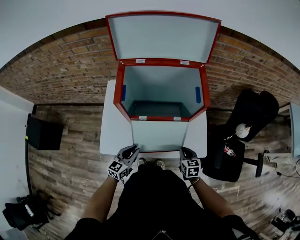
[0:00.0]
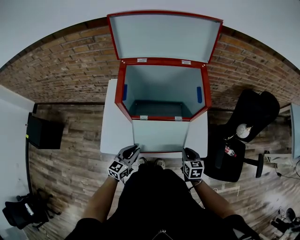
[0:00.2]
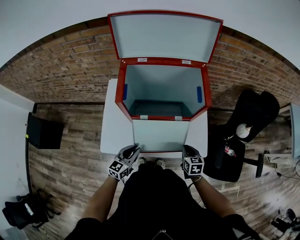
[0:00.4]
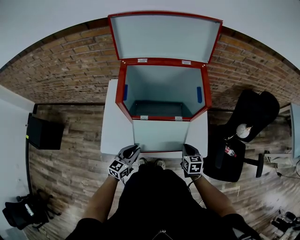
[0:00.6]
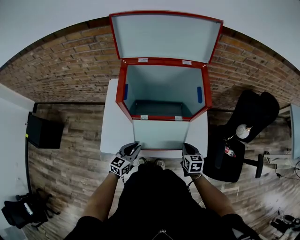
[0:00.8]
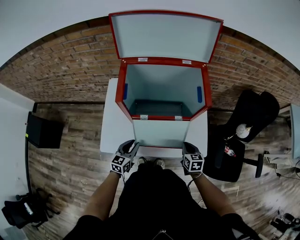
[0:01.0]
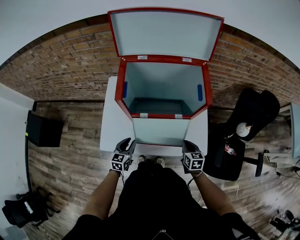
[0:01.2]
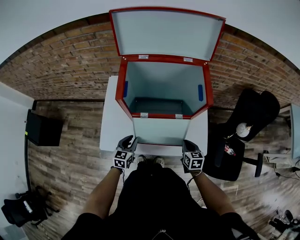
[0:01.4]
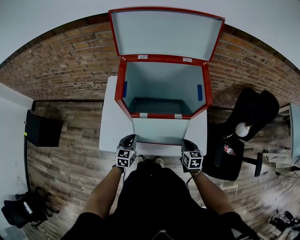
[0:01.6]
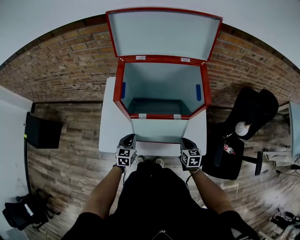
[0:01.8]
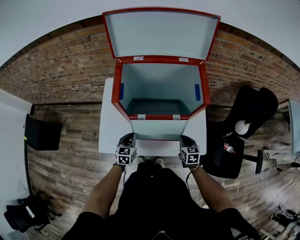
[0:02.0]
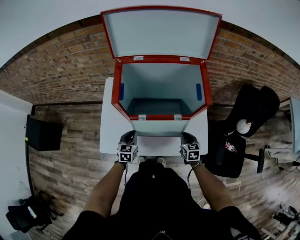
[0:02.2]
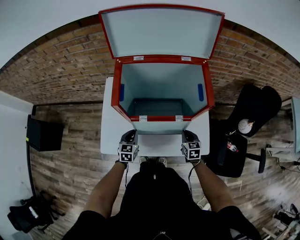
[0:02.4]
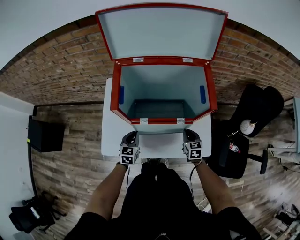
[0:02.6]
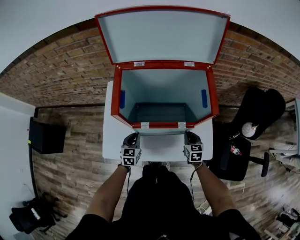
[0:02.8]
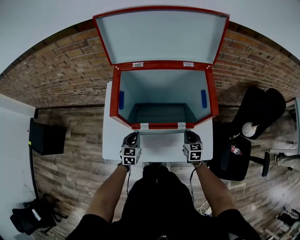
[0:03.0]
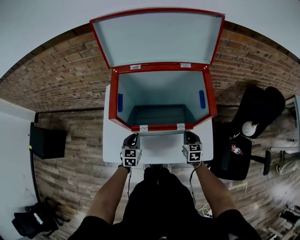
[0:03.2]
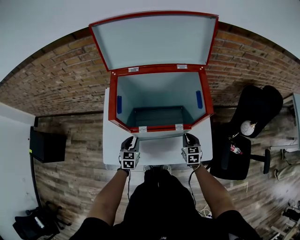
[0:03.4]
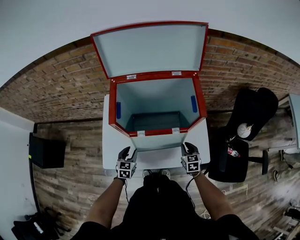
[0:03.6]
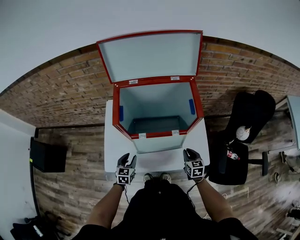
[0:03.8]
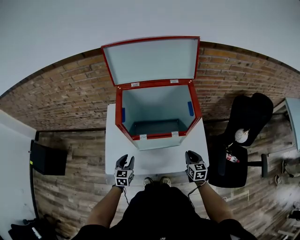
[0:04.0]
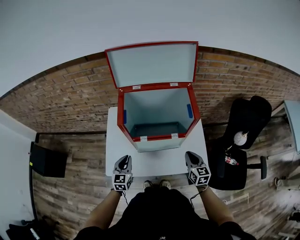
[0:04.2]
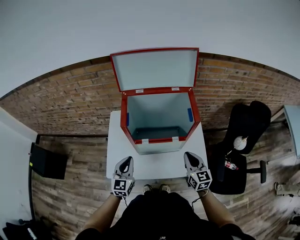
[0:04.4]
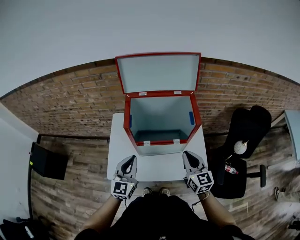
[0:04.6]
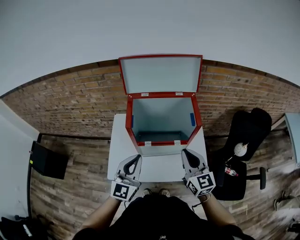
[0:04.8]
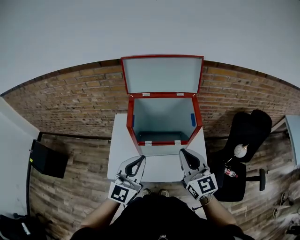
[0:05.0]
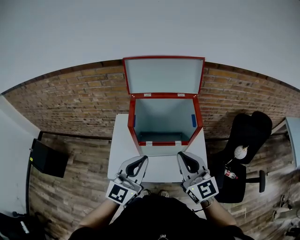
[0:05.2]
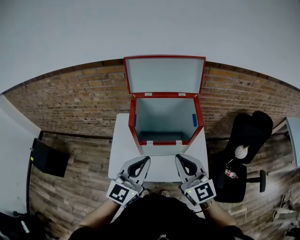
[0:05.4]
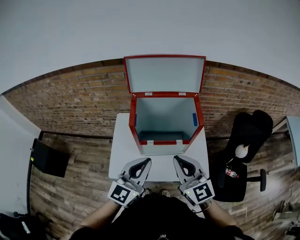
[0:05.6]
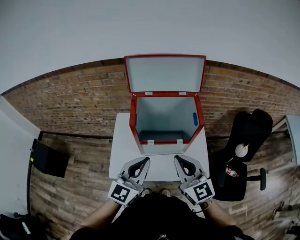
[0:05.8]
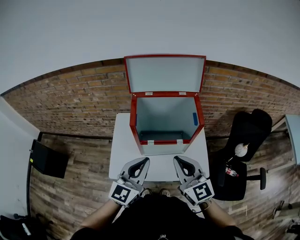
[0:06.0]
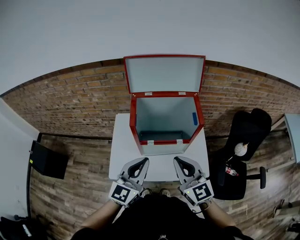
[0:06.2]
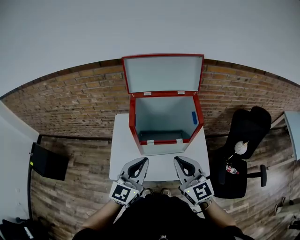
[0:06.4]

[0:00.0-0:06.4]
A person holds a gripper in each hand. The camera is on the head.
0:00.0 to 0:01.6: The left gripper goes some 5 cm forward, and turns by some 20 degrees.
0:01.6 to 0:03.2: Both grippers travel together forward, about 10 cm.
0:03.2 to 0:04.8: The grippers both shift upward by about 35 cm. The right gripper tilts its fingers approximately 30 degrees upward, while the left gripper points its fingers roughly 40 degrees further upward, and opens, then closes once more.
0:04.8 to 0:06.4: The right gripper shifts roughly 5 cm to the left.

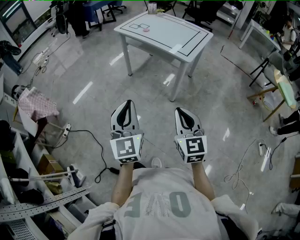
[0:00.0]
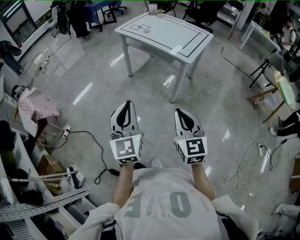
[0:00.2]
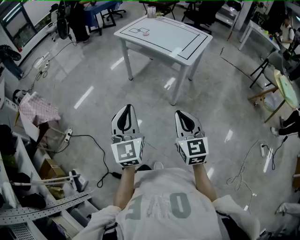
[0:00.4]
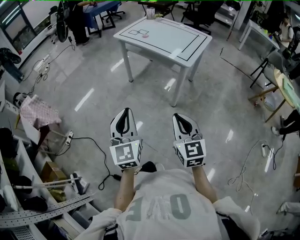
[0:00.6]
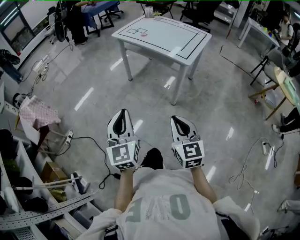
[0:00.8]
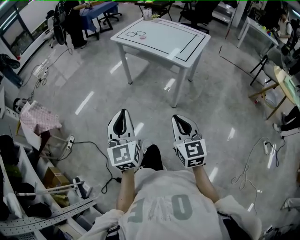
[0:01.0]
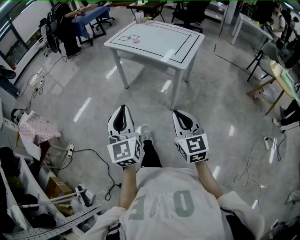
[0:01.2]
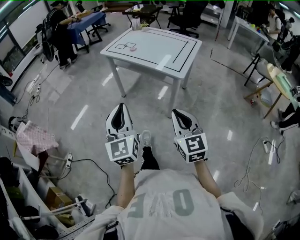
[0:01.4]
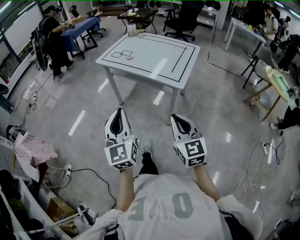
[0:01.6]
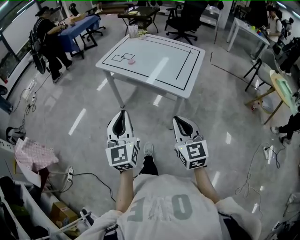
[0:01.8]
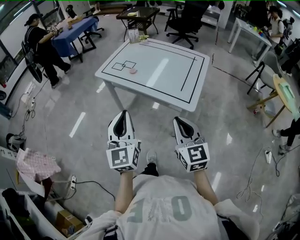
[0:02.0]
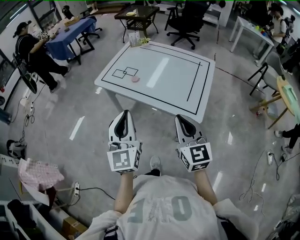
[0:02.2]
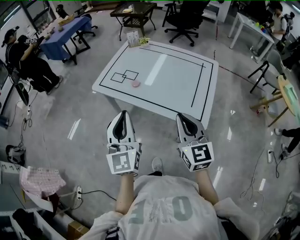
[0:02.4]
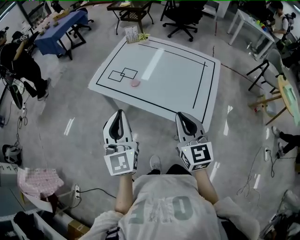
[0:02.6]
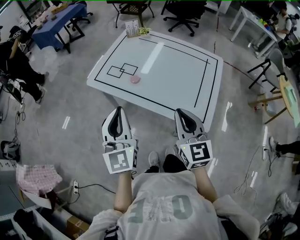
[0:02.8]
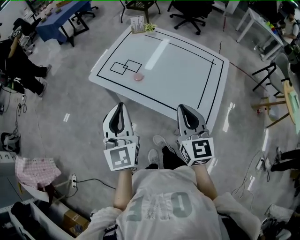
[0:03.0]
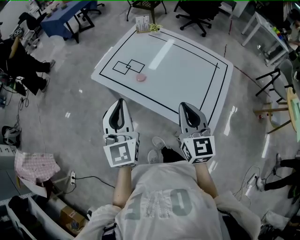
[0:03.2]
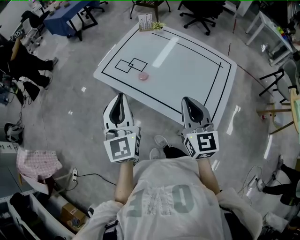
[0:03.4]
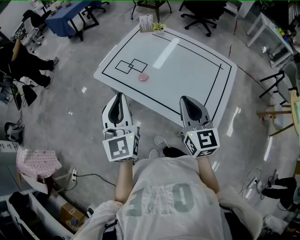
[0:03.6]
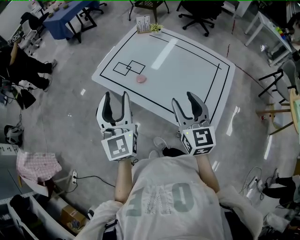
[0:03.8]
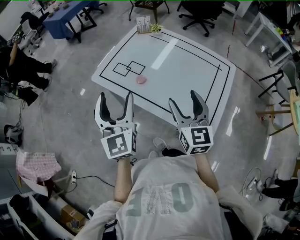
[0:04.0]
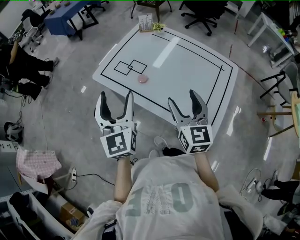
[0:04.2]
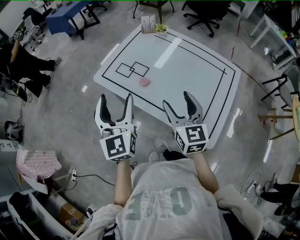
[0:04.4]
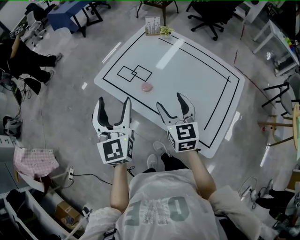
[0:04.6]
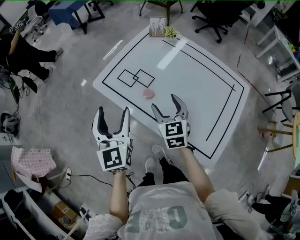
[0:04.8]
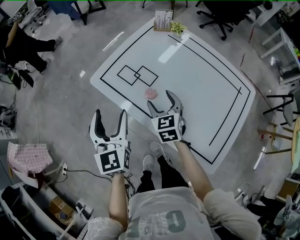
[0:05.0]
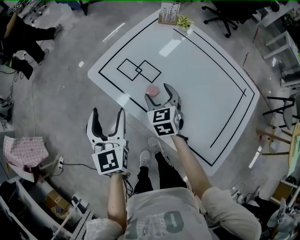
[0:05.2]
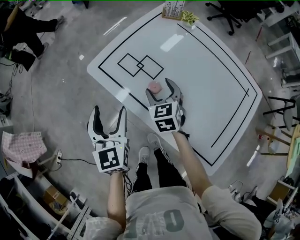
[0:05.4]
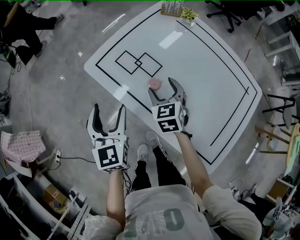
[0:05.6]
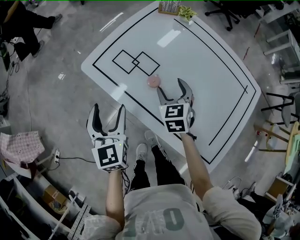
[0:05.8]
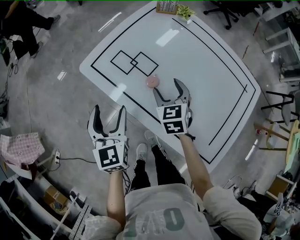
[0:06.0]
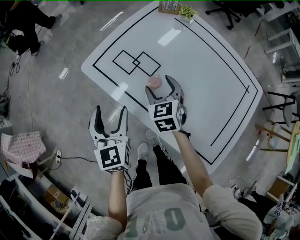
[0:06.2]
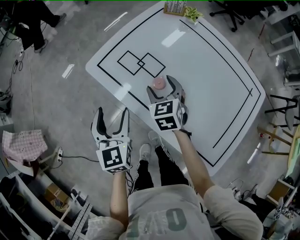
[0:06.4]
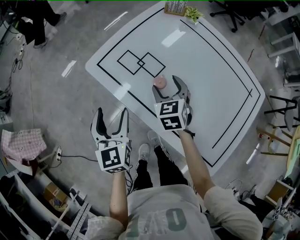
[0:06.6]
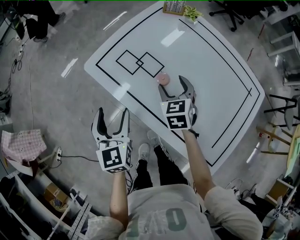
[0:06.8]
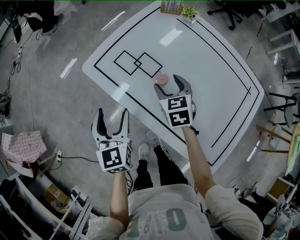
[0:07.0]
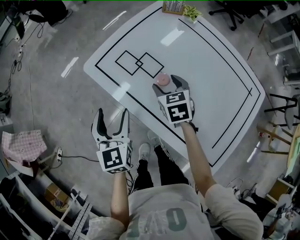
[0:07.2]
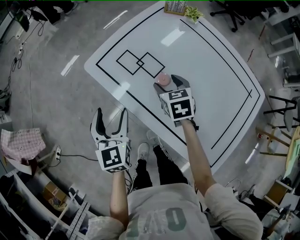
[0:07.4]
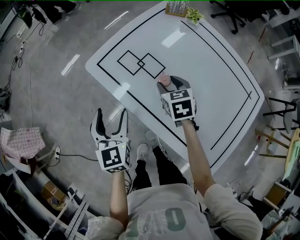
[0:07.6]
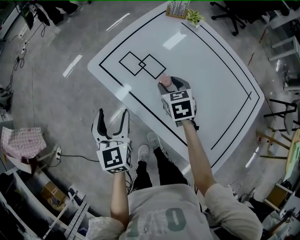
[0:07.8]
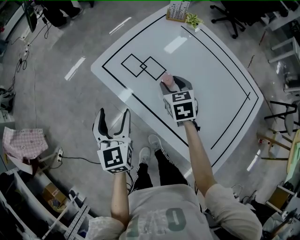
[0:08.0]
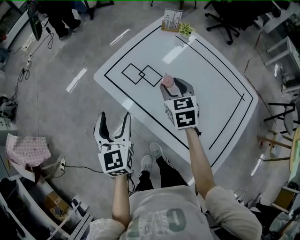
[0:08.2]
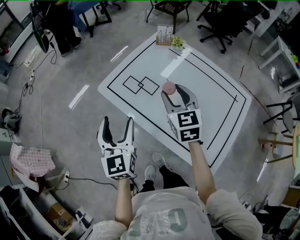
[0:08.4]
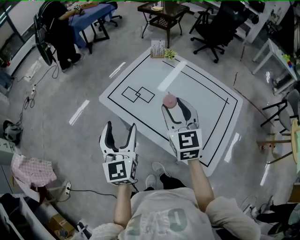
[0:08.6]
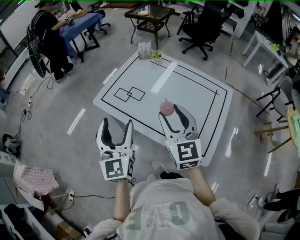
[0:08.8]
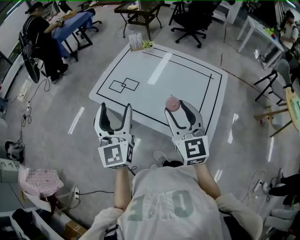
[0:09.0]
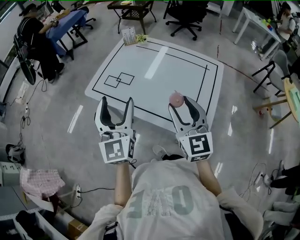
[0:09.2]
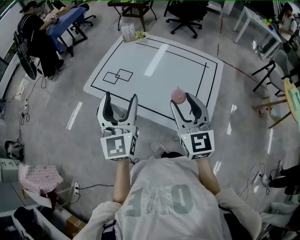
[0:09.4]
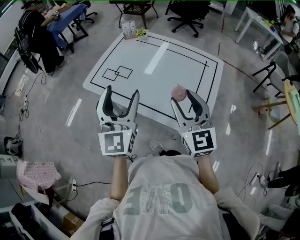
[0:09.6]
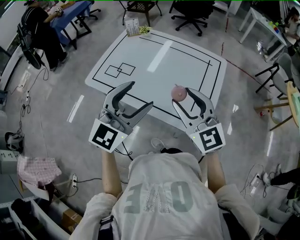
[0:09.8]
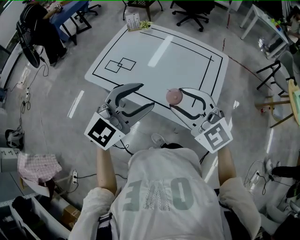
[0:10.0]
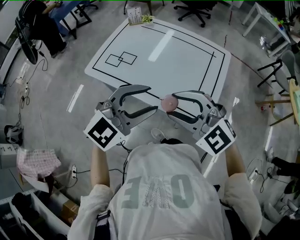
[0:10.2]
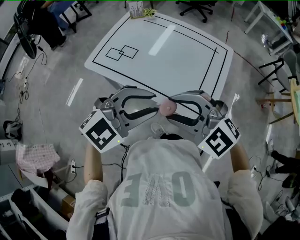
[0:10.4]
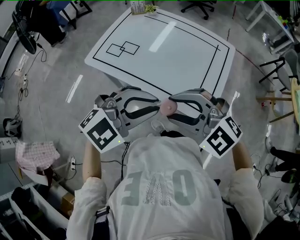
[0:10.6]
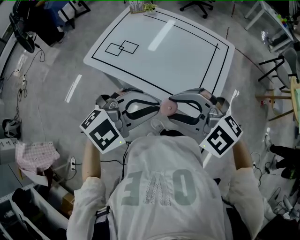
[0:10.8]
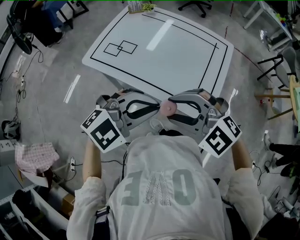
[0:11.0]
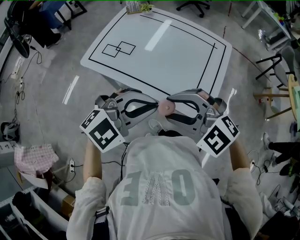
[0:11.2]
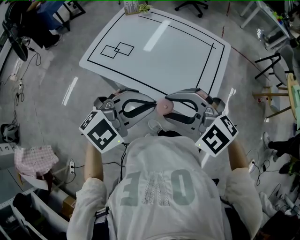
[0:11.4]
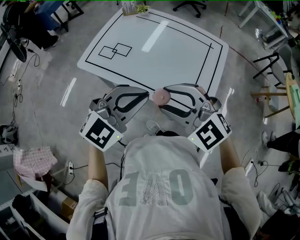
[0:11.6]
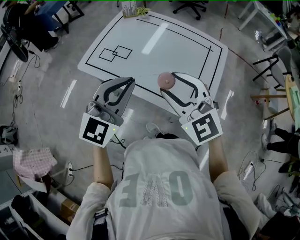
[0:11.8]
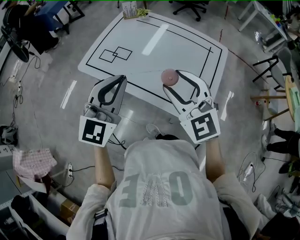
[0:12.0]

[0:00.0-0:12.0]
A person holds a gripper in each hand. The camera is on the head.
0:00.0 to 0:01.6: Both grippers travel together forward, some 20 cm.
0:01.6 to 0:03.0: Both grippers are carried forward, roughly 40 cm.
0:03.0 to 0:04.4: Both grippers travel together forward, approximately 10 cm. The right gripper opens; the left gripper opens.
0:04.4 to 0:06.0: The right gripper travels forward and downward by some 25 cm, and changes its angle by some 30 degrees. The left gripper travels downward and forward by approximately 20 cm, and turns by approximately 20 degrees.
0:06.0 to 0:07.6: The grippers move only a little.
0:07.6 to 0:09.0: The right gripper travels upward and backward by some 40 cm, and tips its fingers upward by about 40 degrees. Meanwhile the left gripper shifts approximately 25 cm upward and backward, and points its fingers some 30 degrees further upward.
0:09.0 to 0:10.4: The left gripper moves about 20 cm, turns by some 70 degrees, and closes up; the right gripper shifts by about 10 cm, and turns by approximately 60 degrees.
0:10.4 to 0:12.0: The right gripper moves some 10 cm, and turns by about 30 degrees; the left gripper moves roughly 10 cm, changes its angle by approximately 40 degrees, and closes its fingers.

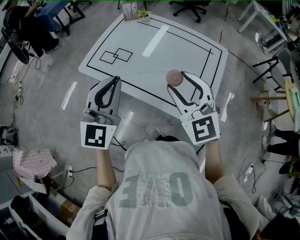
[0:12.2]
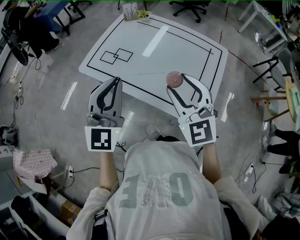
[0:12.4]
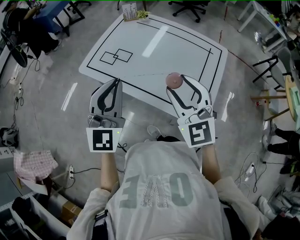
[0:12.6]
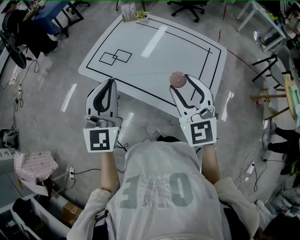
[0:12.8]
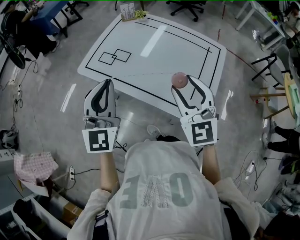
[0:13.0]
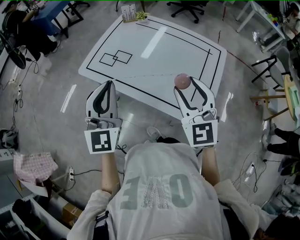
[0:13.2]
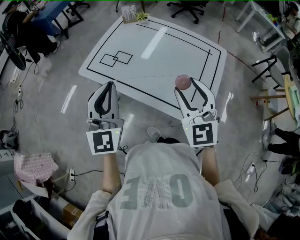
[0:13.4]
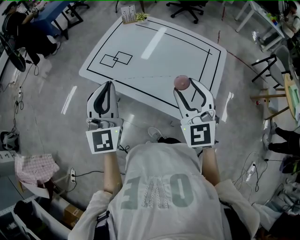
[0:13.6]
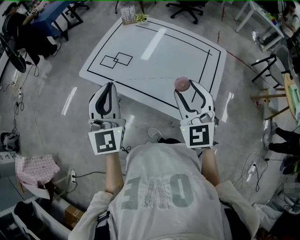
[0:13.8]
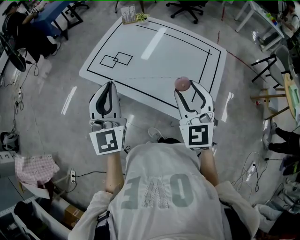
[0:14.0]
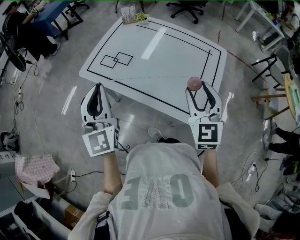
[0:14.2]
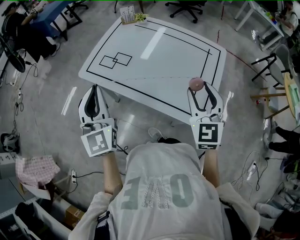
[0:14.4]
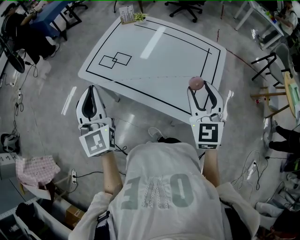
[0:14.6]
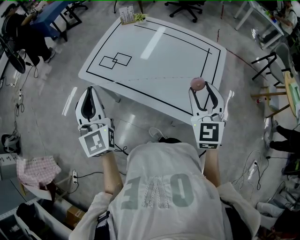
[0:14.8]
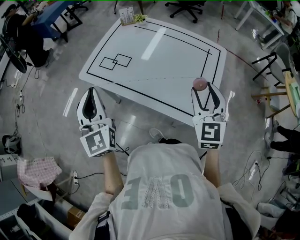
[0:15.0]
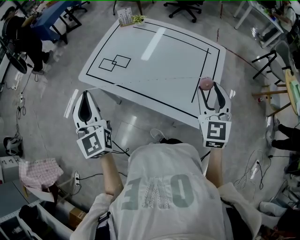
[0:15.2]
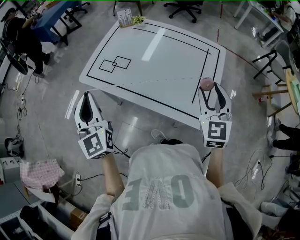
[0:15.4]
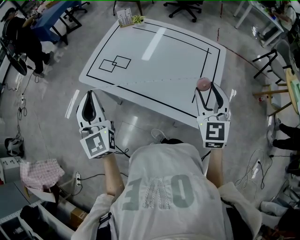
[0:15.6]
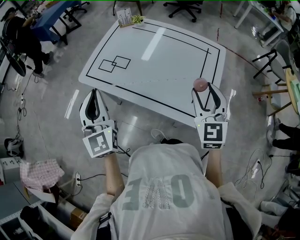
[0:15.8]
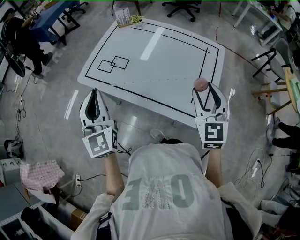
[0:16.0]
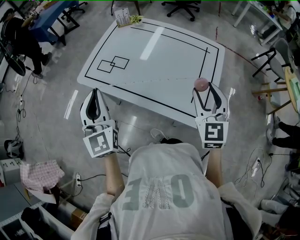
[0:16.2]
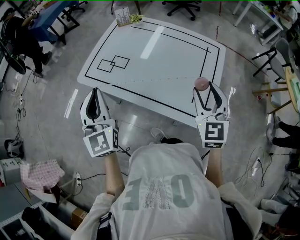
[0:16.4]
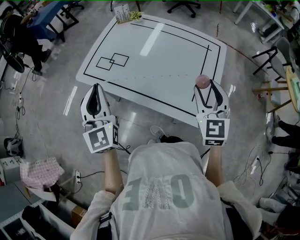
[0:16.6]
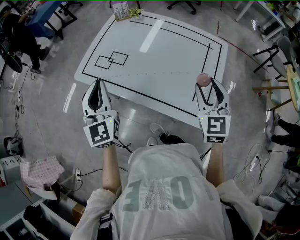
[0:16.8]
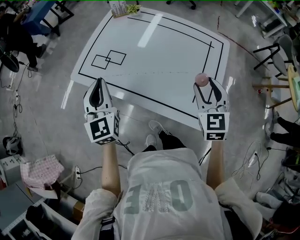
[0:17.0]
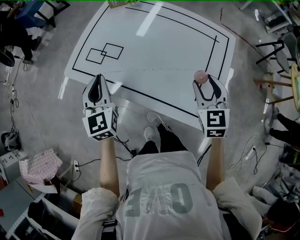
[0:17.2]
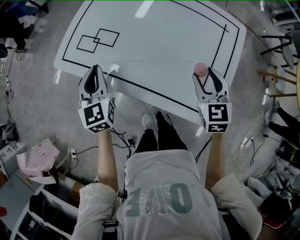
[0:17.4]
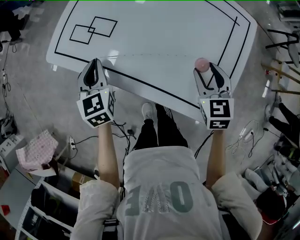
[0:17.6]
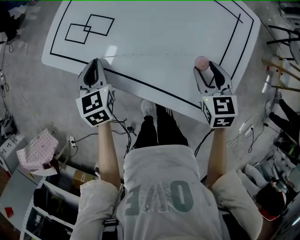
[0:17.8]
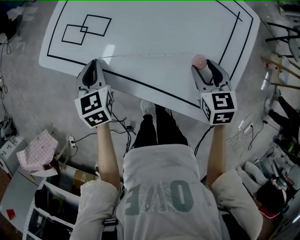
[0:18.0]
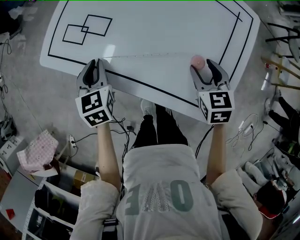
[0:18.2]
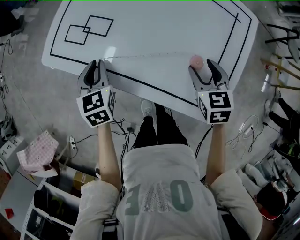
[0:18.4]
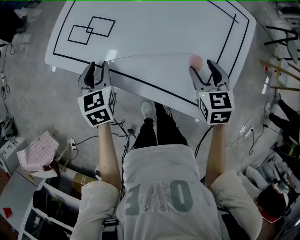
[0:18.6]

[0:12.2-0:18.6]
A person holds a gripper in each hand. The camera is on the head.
0:12.2 to 0:13.8: The grippers move only a little.
0:13.8 to 0:15.4: The right gripper heads to the right, covering some 10 cm; the left gripper heads to the left, covering about 10 cm.
0:15.4 to 0:17.0: The left gripper goes about 10 cm forward, downward and to the right. Meanwhile the right gripper travels downward and forward by approximately 10 cm.
0:17.0 to 0:18.6: The two grippers go approximately 20 cm downward. The left gripper angles its fingers downward, by approximately 30 degrees, while the right gripper changes its angle by approximately 20 degrees.
